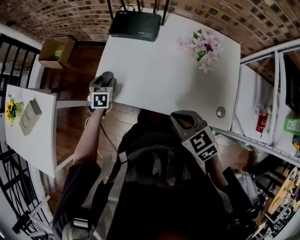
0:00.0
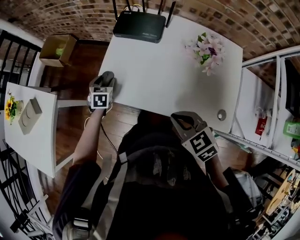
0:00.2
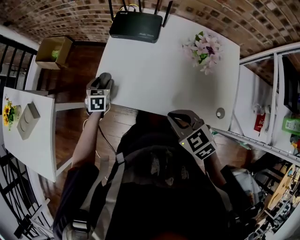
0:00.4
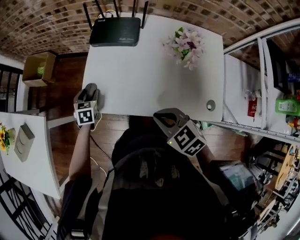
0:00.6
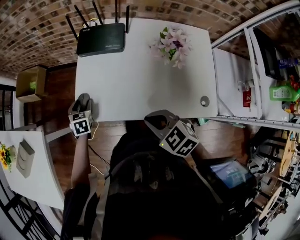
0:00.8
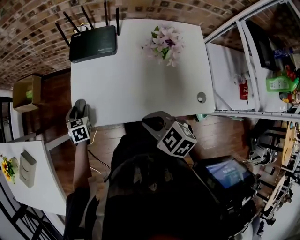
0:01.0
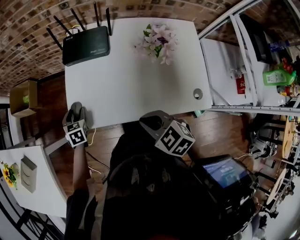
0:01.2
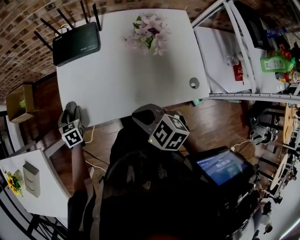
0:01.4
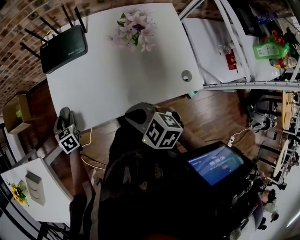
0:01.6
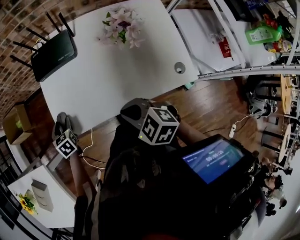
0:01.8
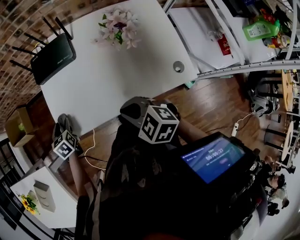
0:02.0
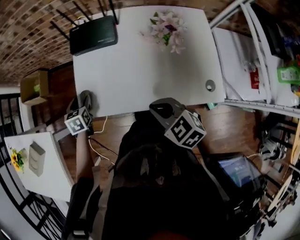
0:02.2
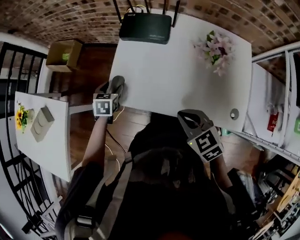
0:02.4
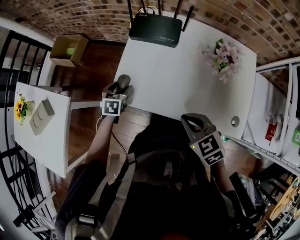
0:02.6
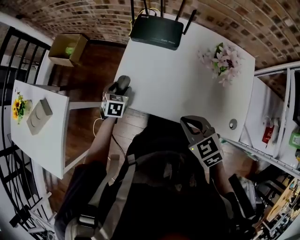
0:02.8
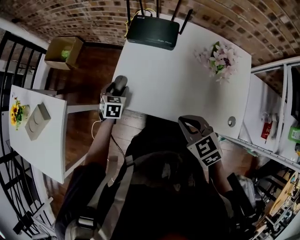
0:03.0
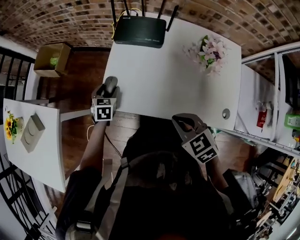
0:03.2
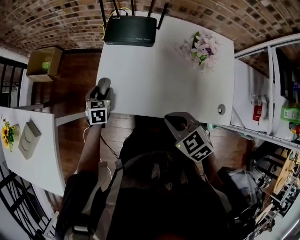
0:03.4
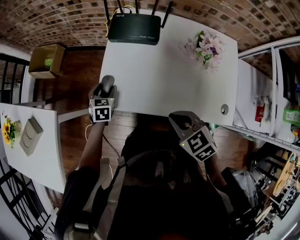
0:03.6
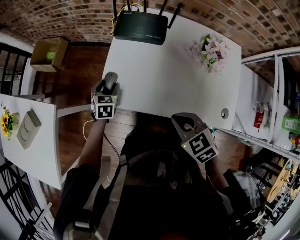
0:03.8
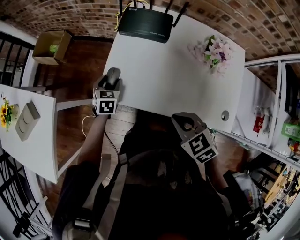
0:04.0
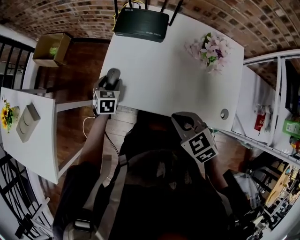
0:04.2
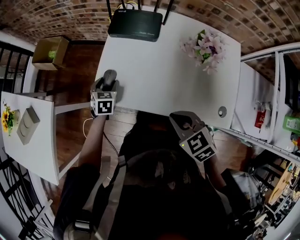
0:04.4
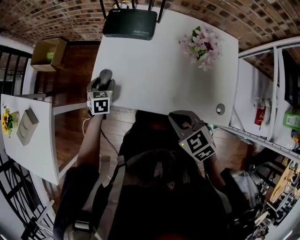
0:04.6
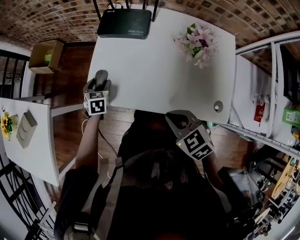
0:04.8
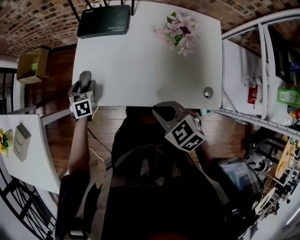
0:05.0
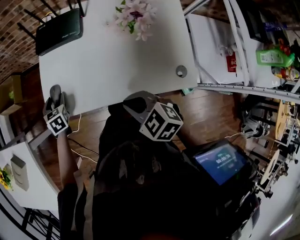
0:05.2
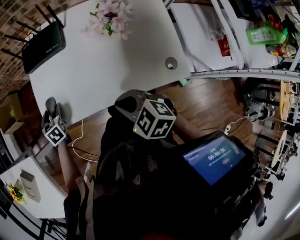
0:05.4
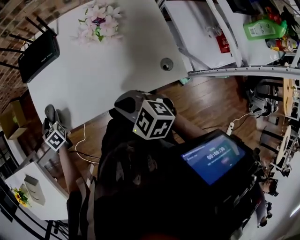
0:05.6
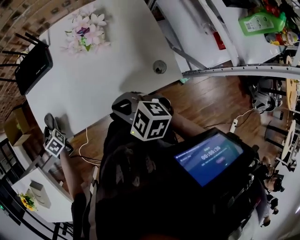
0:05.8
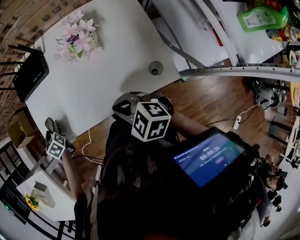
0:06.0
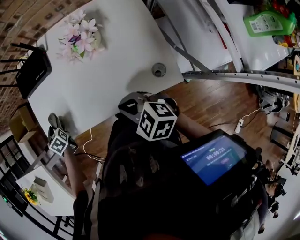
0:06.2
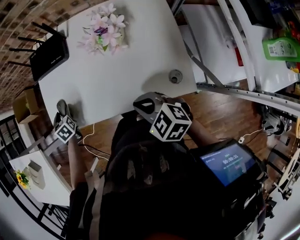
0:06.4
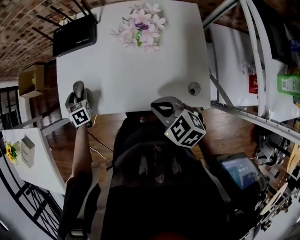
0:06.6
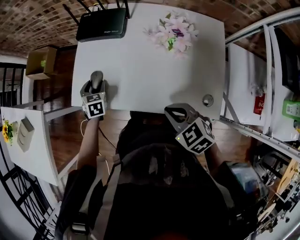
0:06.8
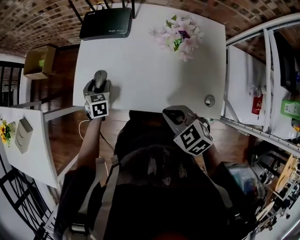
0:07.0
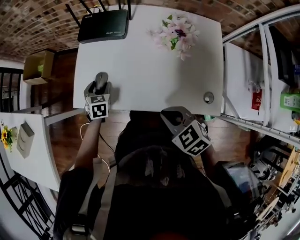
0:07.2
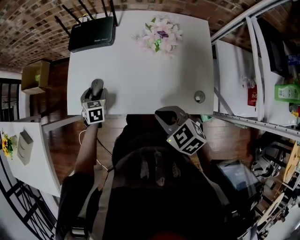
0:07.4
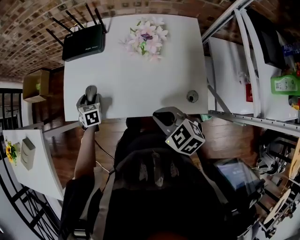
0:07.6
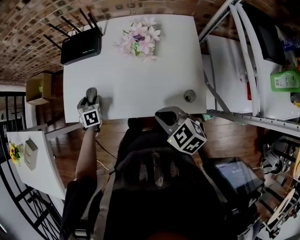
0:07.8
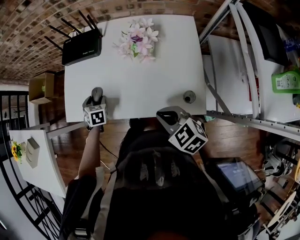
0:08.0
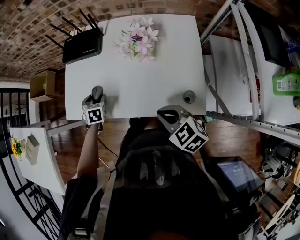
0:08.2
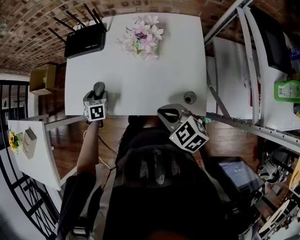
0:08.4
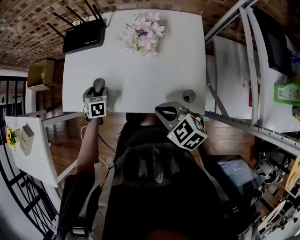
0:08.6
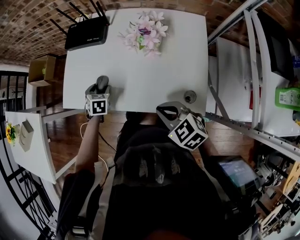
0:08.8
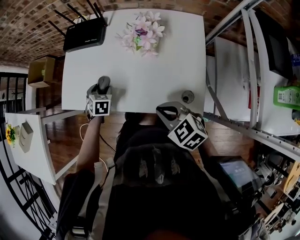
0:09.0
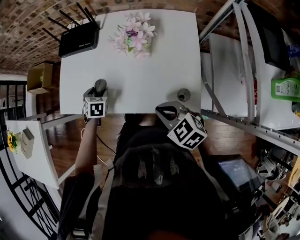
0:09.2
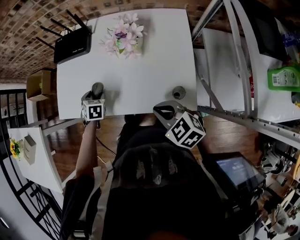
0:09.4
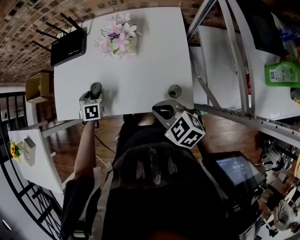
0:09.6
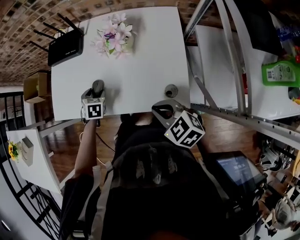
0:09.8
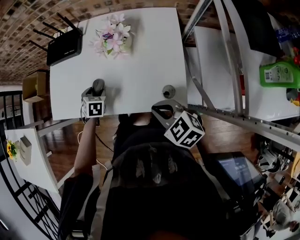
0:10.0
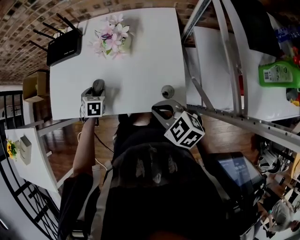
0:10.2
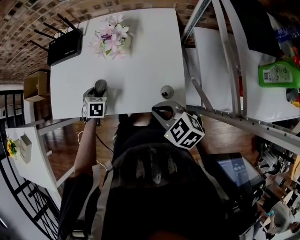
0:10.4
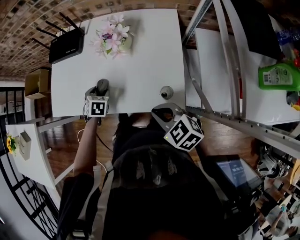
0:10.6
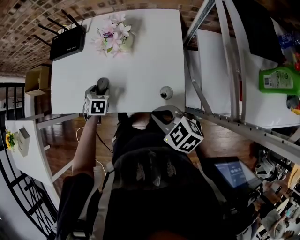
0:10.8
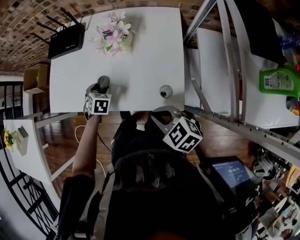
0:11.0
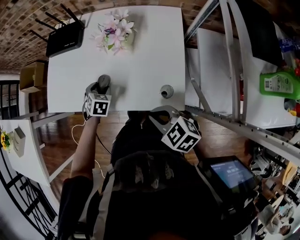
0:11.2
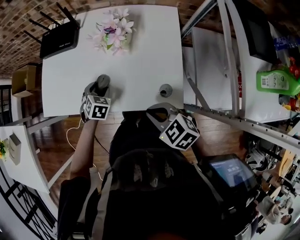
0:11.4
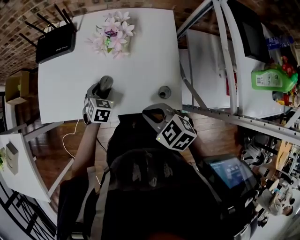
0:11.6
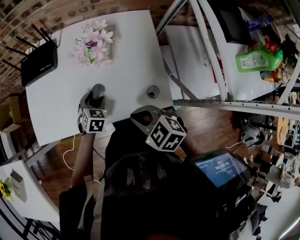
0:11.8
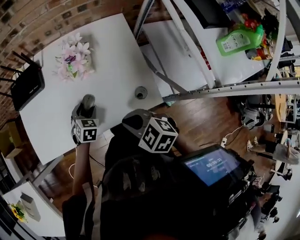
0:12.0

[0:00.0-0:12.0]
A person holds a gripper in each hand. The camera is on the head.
0:00.0 to 0:01.6: The right gripper shifts by roughly 5 cm.
0:01.6 to 0:04.4: The grippers stay close to where they were, moving slightly.
0:04.4 to 0:06.0: The right gripper moves to the right and backward, approximately 10 cm.
0:06.0 to 0:07.6: The left gripper heads to the right, covering about 5 cm.
0:07.6 to 0:09.0: The left gripper is displaced to the right and backward by some 10 cm, while the right gripper is displaced to the right by approximately 5 cm.
0:09.0 to 0:10.4: Both grippers move to the right and backward, about 10 cm.
0:10.4 to 0:12.0: The right gripper travels to the left by roughly 5 cm. The left gripper shifts about 5 cm to the right, and swivels about 30 degrees.

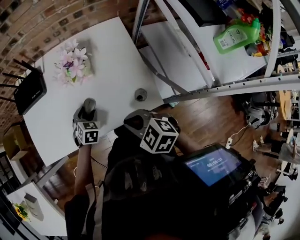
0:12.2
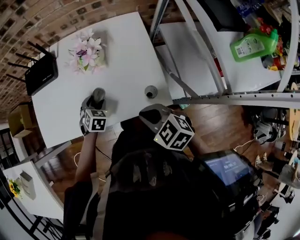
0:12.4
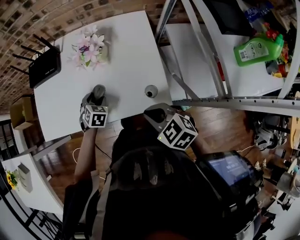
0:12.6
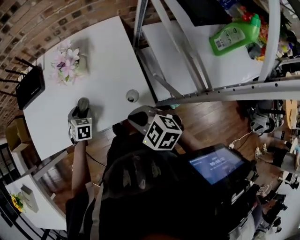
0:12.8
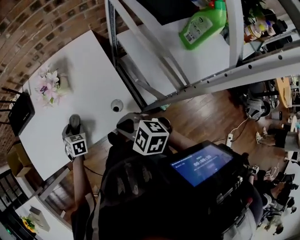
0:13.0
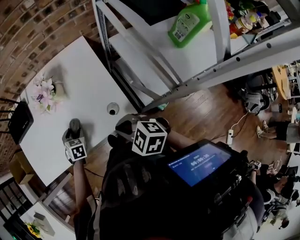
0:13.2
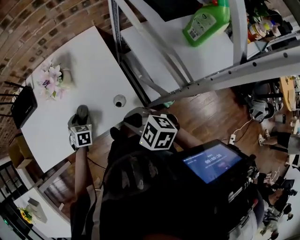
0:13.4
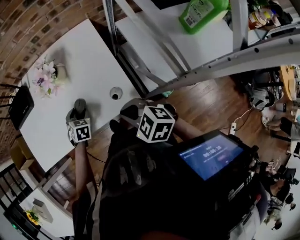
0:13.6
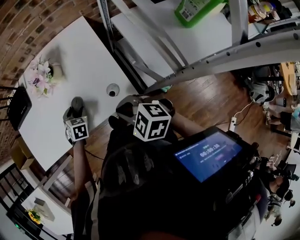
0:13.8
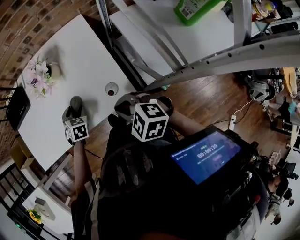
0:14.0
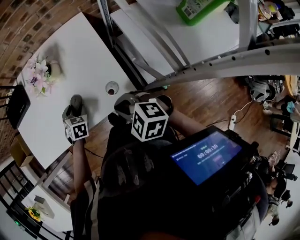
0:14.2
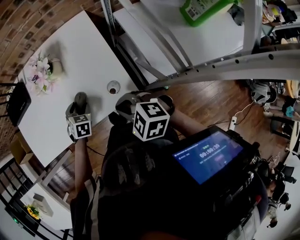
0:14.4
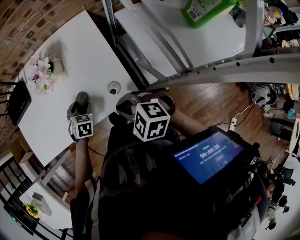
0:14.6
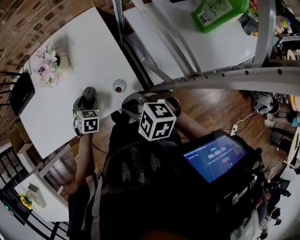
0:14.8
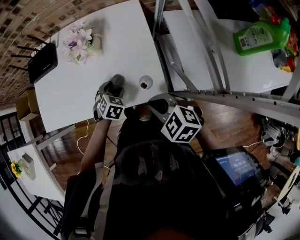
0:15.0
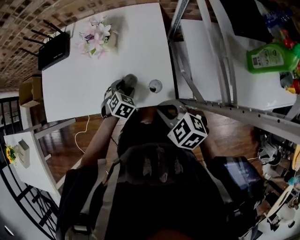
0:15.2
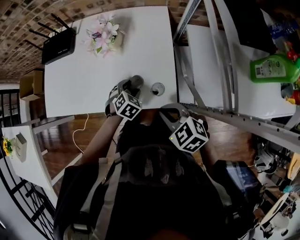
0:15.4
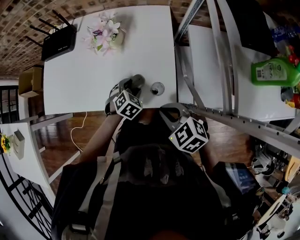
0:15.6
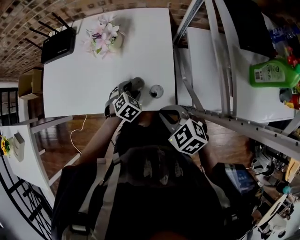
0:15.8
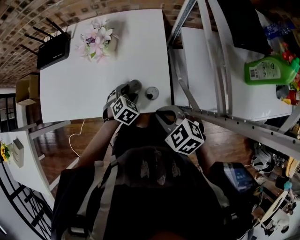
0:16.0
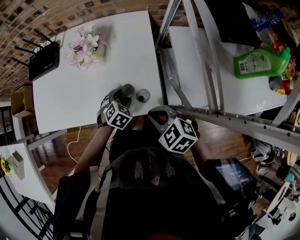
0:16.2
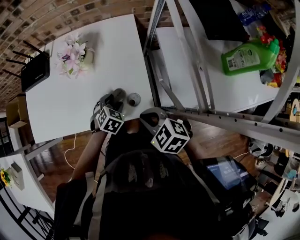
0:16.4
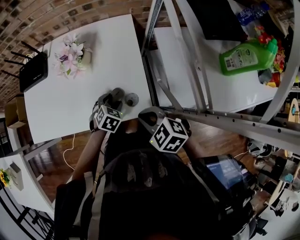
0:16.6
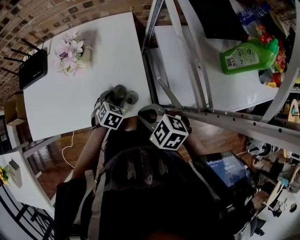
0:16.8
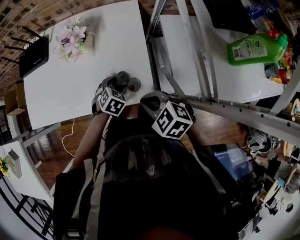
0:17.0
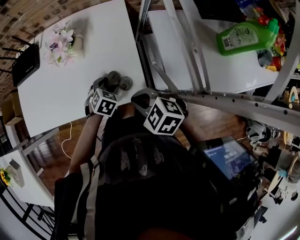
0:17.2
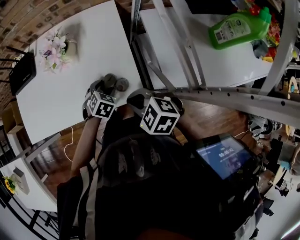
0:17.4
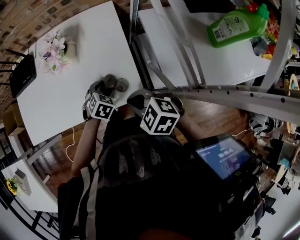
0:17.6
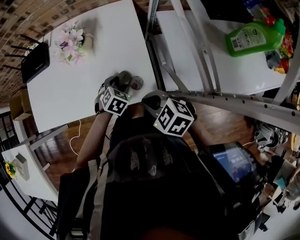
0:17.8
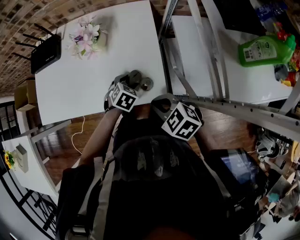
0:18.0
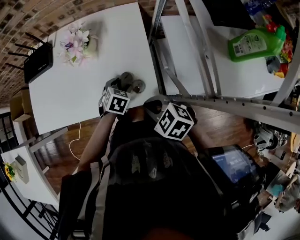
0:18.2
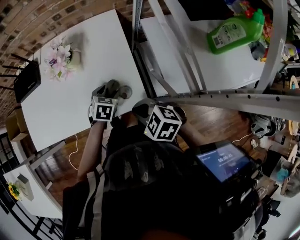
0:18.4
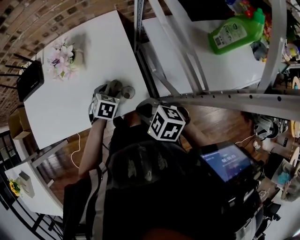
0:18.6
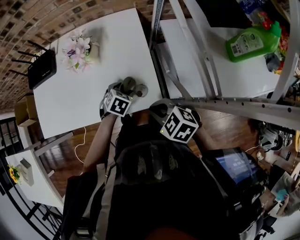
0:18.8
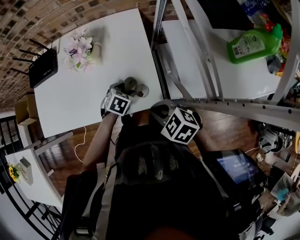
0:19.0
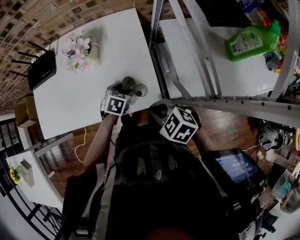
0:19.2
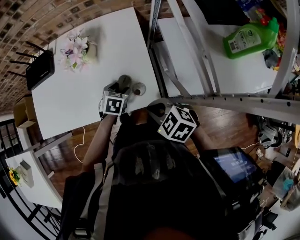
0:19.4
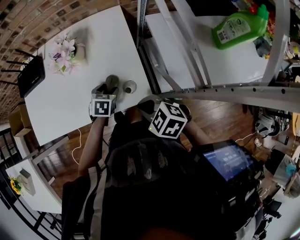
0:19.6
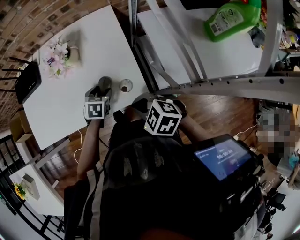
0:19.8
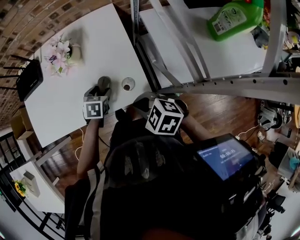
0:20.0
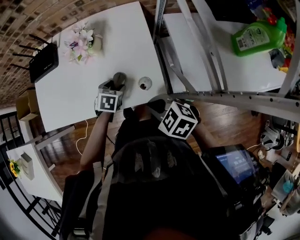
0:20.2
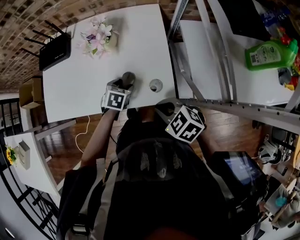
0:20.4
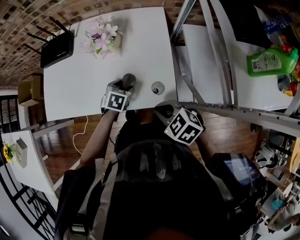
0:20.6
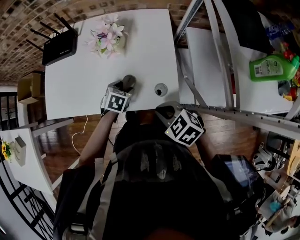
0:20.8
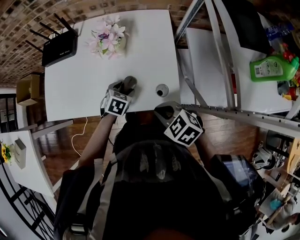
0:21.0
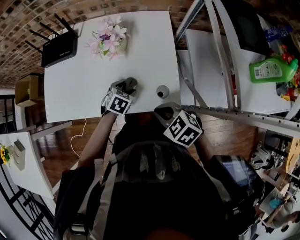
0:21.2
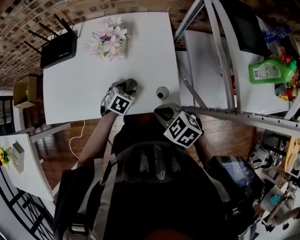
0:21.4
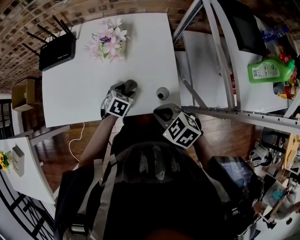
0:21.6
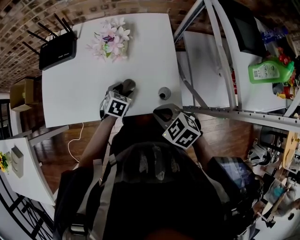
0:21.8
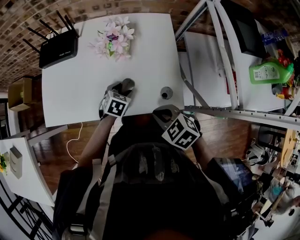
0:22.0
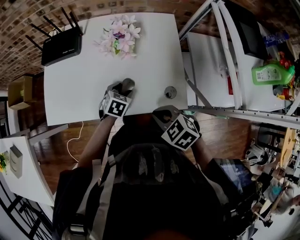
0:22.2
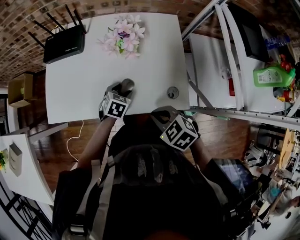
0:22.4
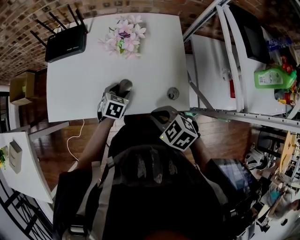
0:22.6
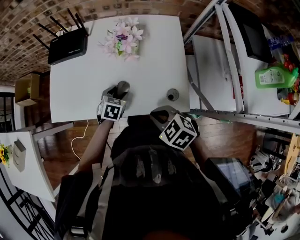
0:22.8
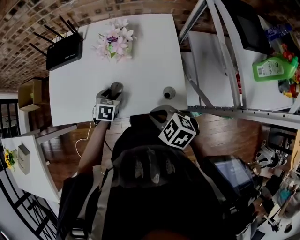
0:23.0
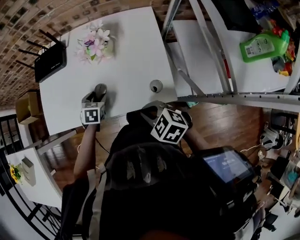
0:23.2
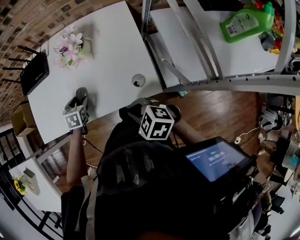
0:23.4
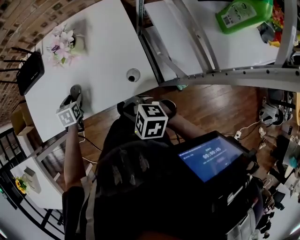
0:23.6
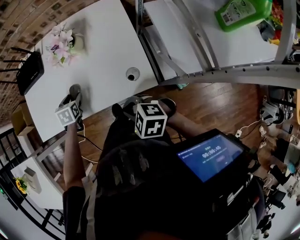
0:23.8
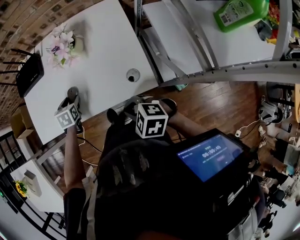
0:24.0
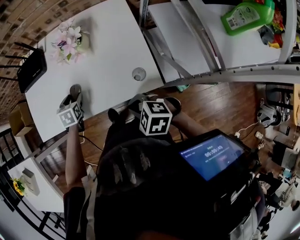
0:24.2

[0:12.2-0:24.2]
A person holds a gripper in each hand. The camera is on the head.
0:12.2 to 0:13.8: The left gripper goes some 5 cm to the right; the right gripper moves to the right, roughly 10 cm.
0:13.8 to 0:15.2: The left gripper moves to the right, approximately 5 cm.
0:15.2 to 0:16.6: The grippers make only small movements.
0:16.6 to 0:19.8: The grippers move only a little.
0:19.8 to 0:21.2: The left gripper shifts by some 5 cm, while the right gripper heads to the left, covering about 5 cm.
0:21.2 to 0:22.6: Both grippers travel together to the left, approximately 10 cm.
0:22.6 to 0:24.2: The left gripper travels to the left by some 5 cm; the right gripper travels backward by about 5 cm.
